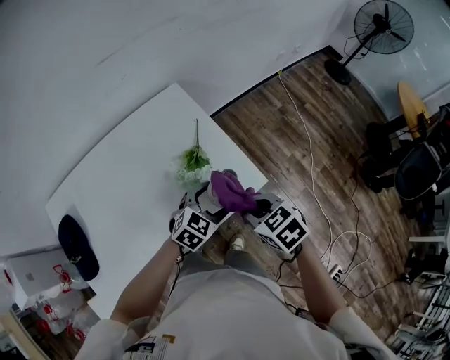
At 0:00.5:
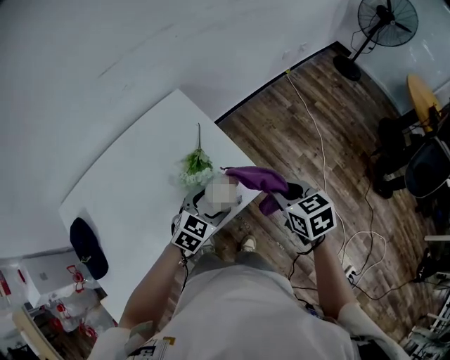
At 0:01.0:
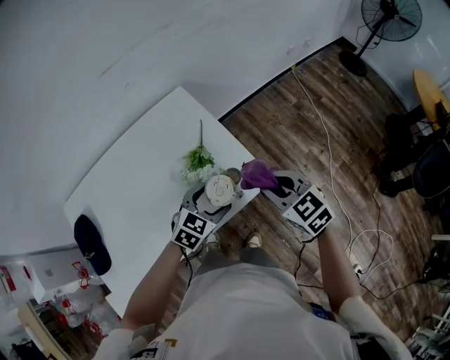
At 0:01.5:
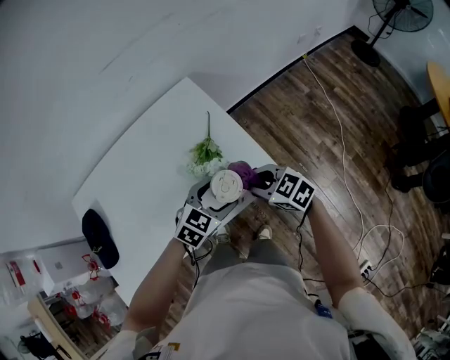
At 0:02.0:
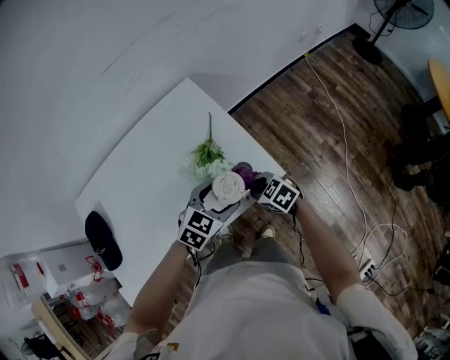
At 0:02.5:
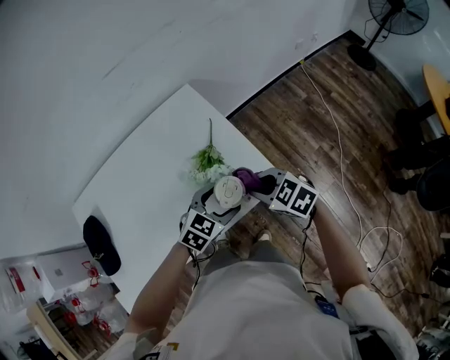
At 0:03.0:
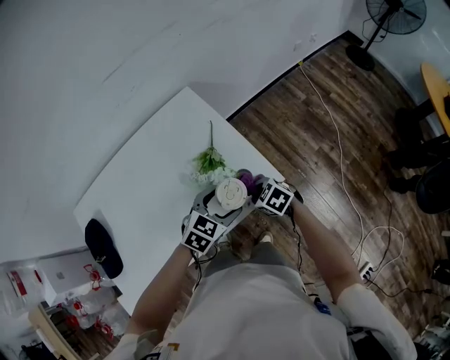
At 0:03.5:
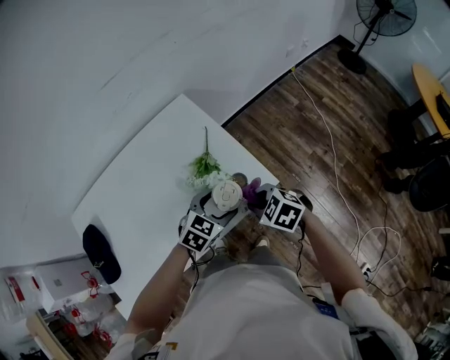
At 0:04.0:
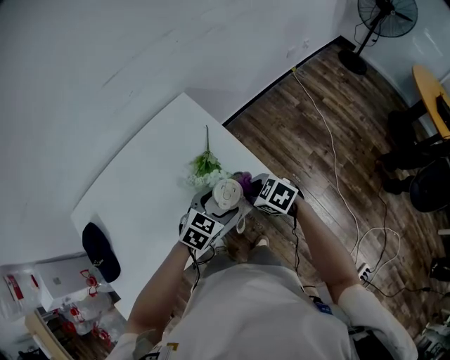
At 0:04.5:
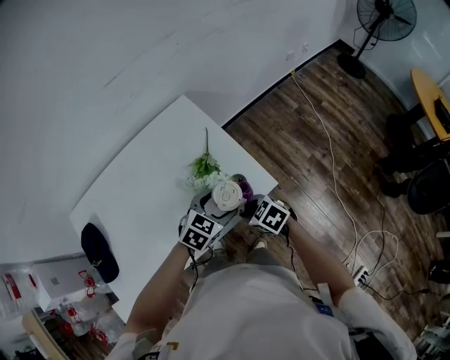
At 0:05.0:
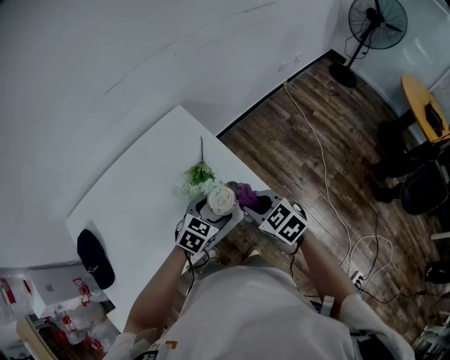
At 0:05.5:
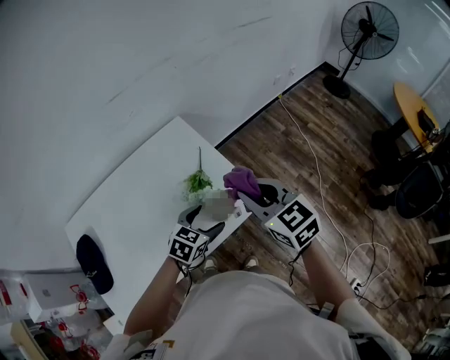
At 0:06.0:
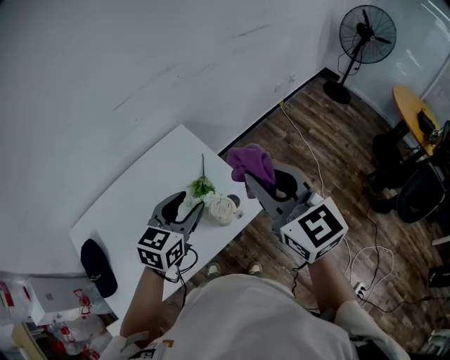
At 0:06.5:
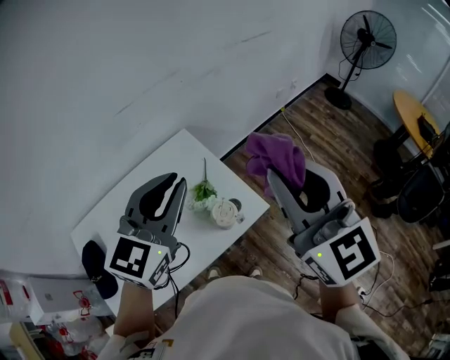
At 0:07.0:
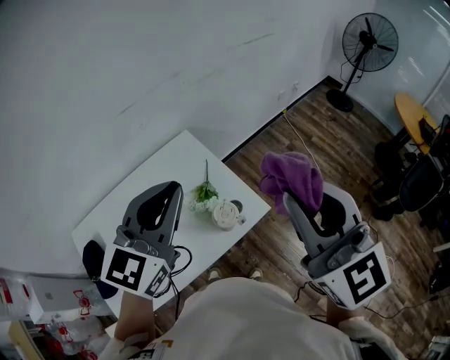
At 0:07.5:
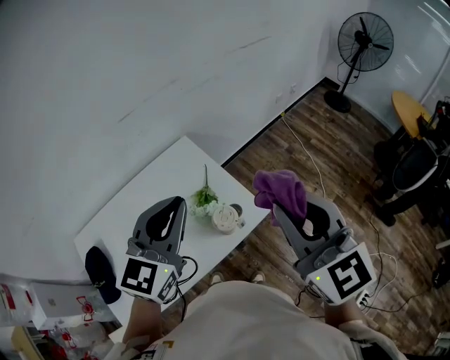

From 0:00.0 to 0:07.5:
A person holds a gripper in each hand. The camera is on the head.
From 0:00.0 to 0:02.0: The right gripper goes roughly 15 cm downward.
From 0:02.0 to 0:04.0: The right gripper swings up and down, approximately 10 cm each way, with 2 reversals.
From 0:04.0 to 0:05.5: The right gripper moves upward, approximately 20 cm, and rotates roughly 40 degrees.
From 0:05.5 to 0:07.5: The left gripper shifts some 30 cm upward, tips its fingers upward by approximately 30 degrees, and closes; the right gripper goes some 20 cm upward, and rotates roughly 20 degrees.

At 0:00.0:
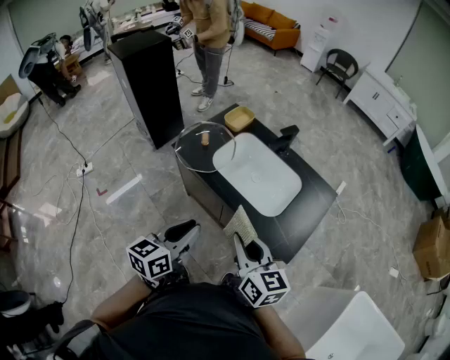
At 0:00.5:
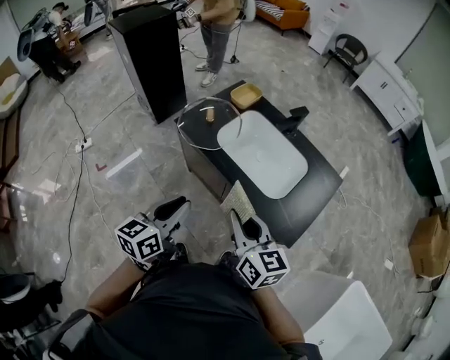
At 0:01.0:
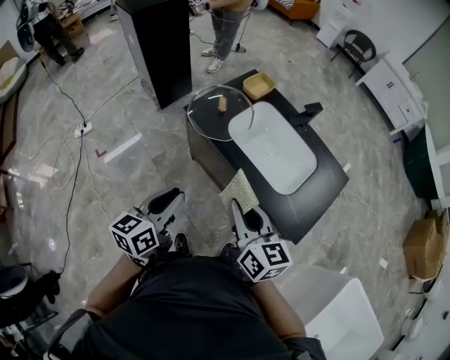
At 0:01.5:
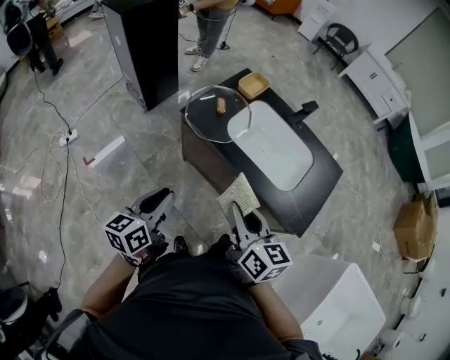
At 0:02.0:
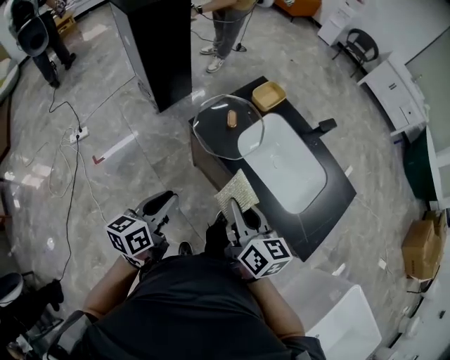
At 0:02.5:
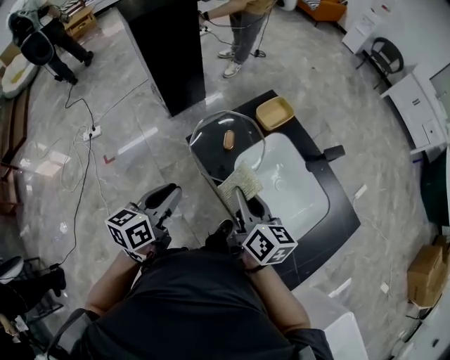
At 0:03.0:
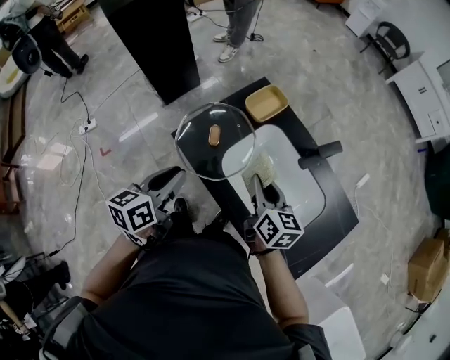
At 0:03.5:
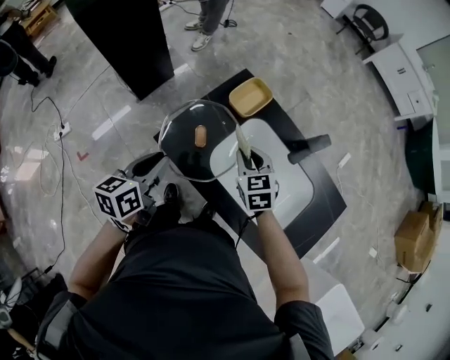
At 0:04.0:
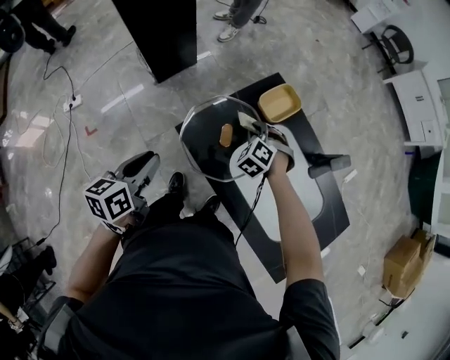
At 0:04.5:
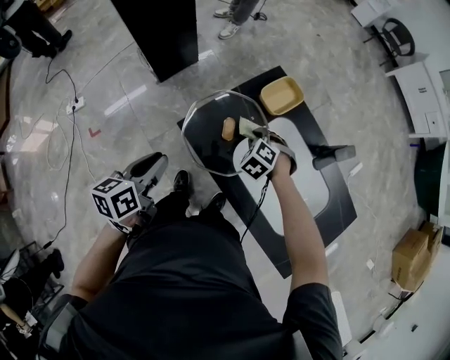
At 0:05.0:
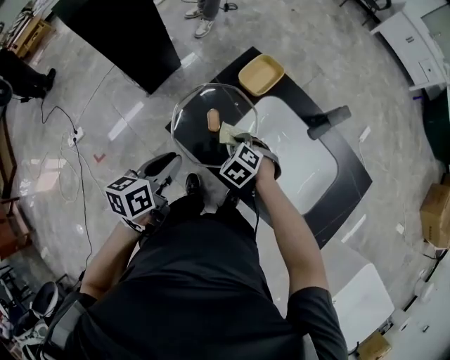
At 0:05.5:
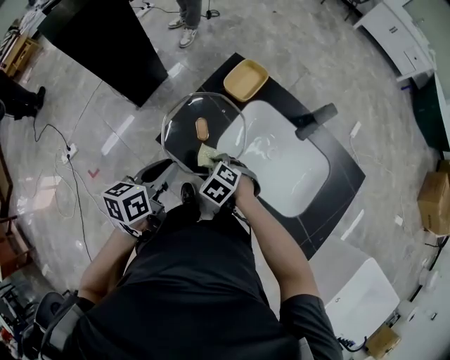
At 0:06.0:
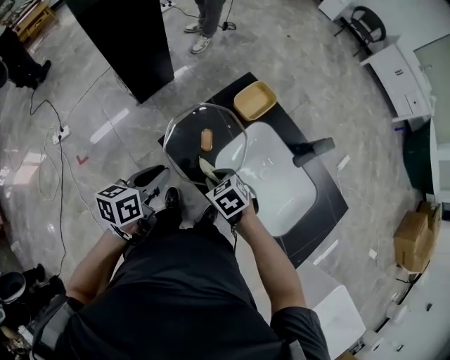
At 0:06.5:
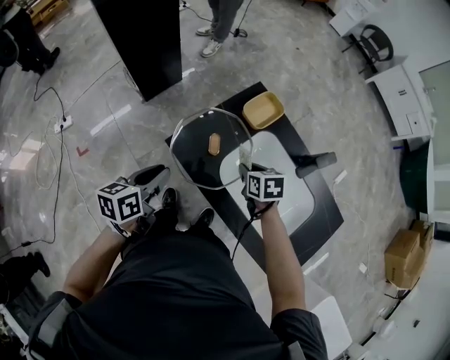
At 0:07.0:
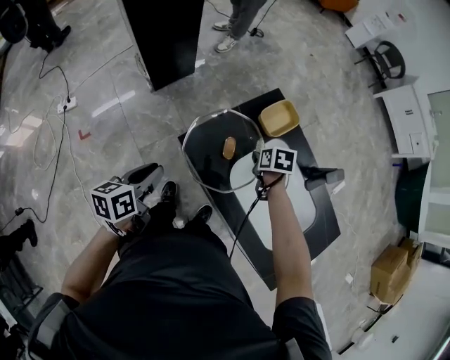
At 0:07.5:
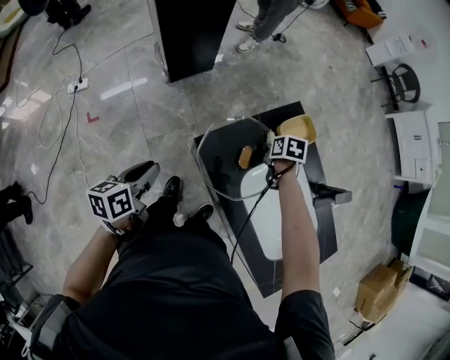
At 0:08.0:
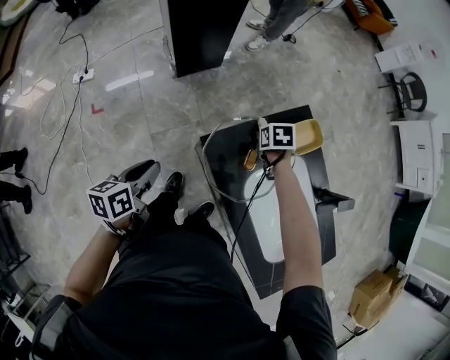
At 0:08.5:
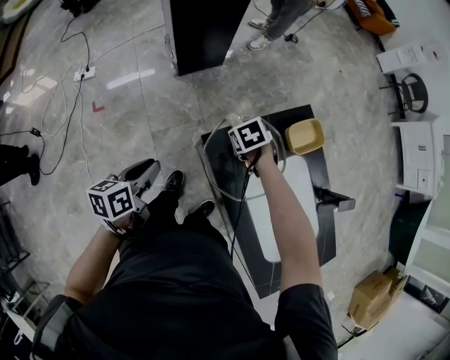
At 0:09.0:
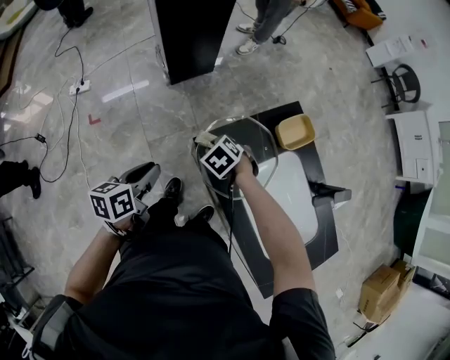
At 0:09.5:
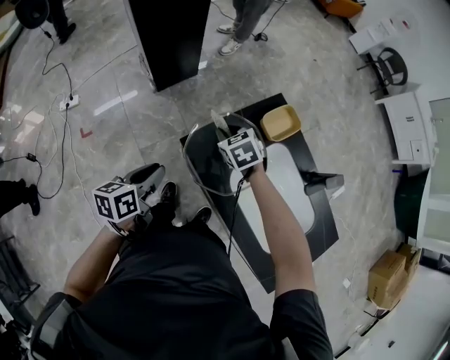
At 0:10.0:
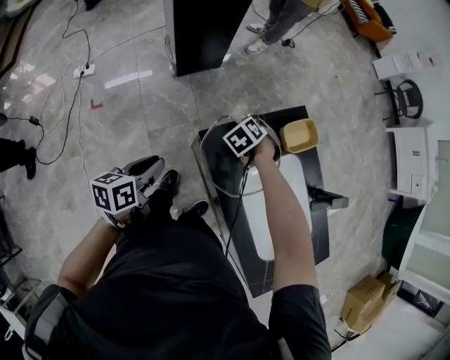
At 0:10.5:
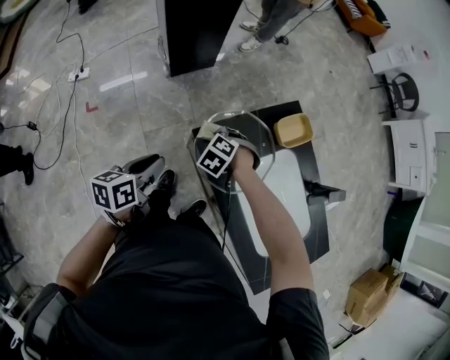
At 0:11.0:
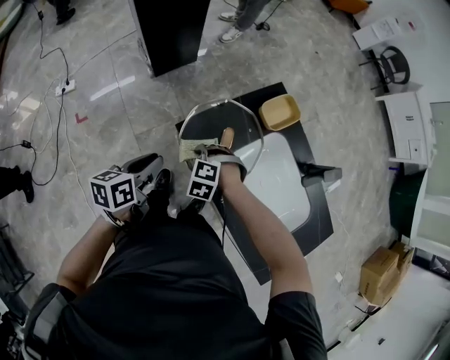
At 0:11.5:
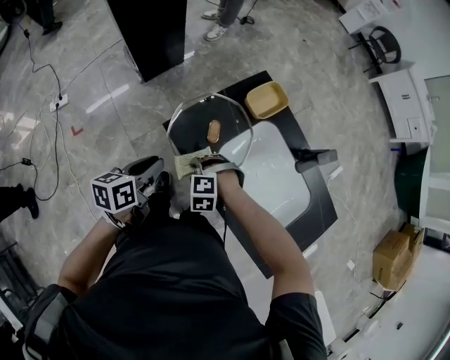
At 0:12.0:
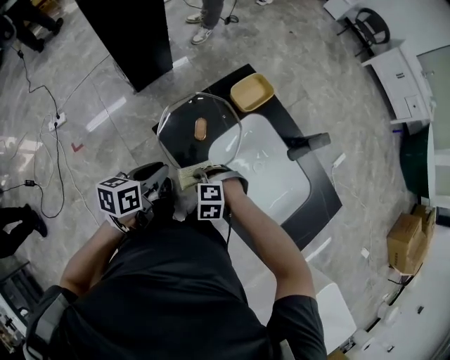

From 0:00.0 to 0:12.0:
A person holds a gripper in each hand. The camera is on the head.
From 0:00.0 to 0:02.0: The grippers both shift to the left and forward by approximately 20 cm.
From 0:02.0 to 0:04.0: The right gripper travels forward and downward by about 40 cm, and rotates around the line of its fingers by about 80 degrees, counterclockwise from behind; the left gripper moves forward, about 25 cm.
From 0:04.0 to 0:06.0: The left gripper moves to the right, roughly 5 cm; the right gripper shifts roughly 15 cm backward, and rotates some 40 degrees.
From 0:06.0 to 0:08.0: The right gripper changes place by about 25 cm, and turns by some 20 degrees. Meanwhile the left gripper moves approximately 15 cm, and changes its angle by approximately 20 degrees.
From 0:08.0 to 0:10.0: The right gripper twists roughly 50 degrees counterclockwise, seen from behind.
From 0:10.0 to 0:12.0: The left gripper ends up some 15 cm from where it was, and changes its angle by approximately 20 degrees; the right gripper shifts by approximately 25 cm, and rotates some 30 degrees.

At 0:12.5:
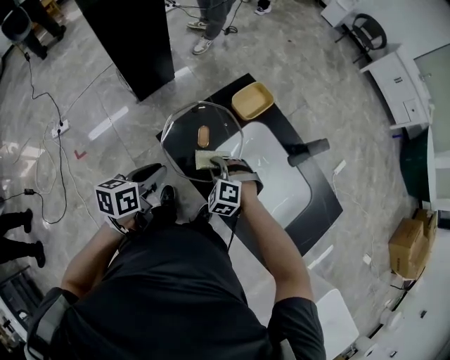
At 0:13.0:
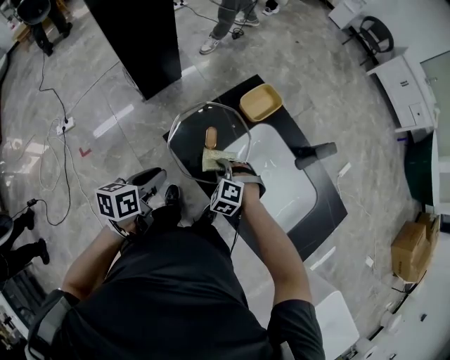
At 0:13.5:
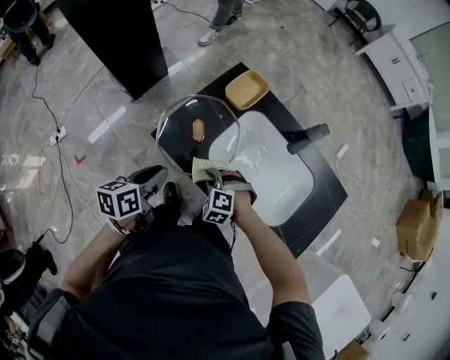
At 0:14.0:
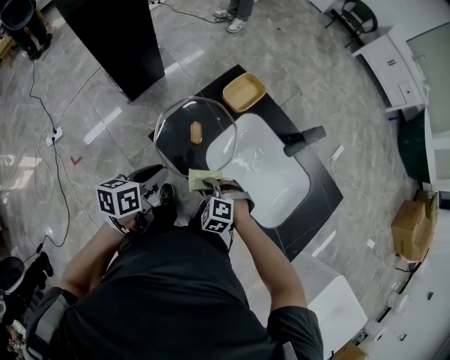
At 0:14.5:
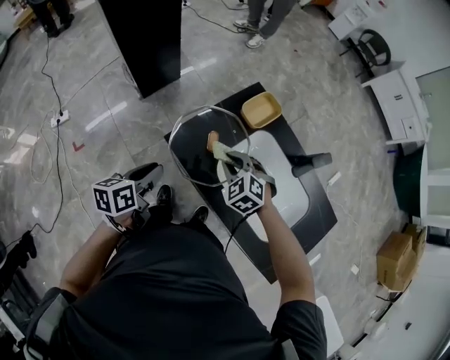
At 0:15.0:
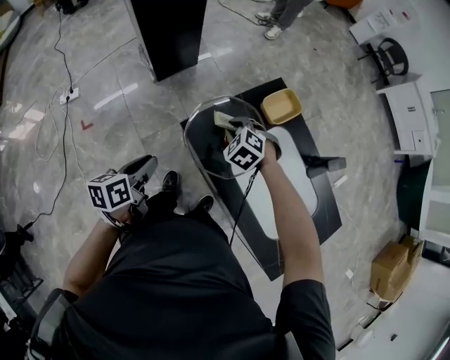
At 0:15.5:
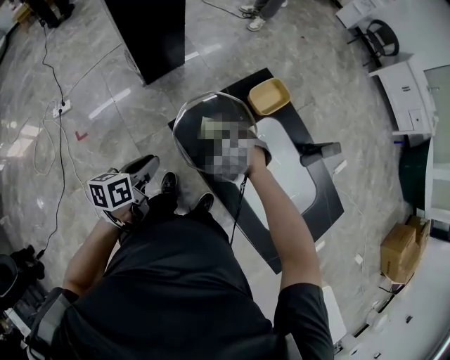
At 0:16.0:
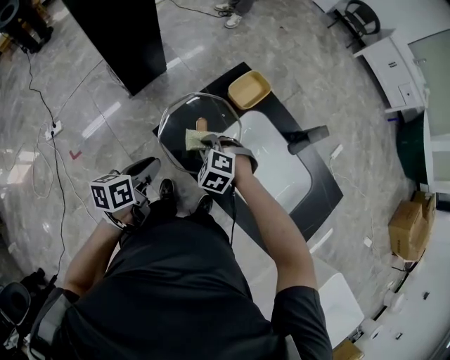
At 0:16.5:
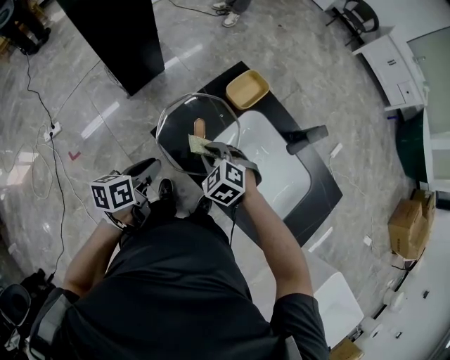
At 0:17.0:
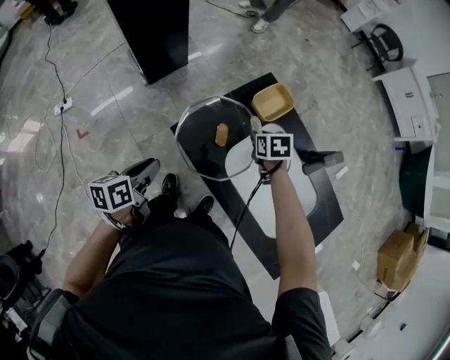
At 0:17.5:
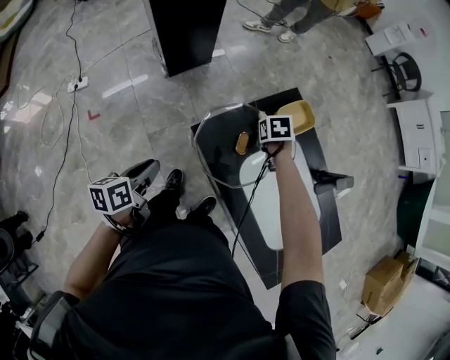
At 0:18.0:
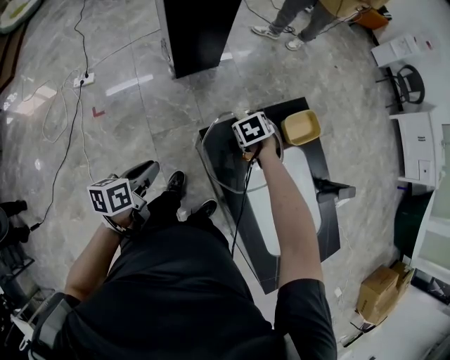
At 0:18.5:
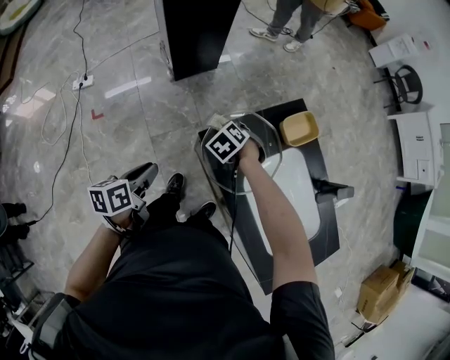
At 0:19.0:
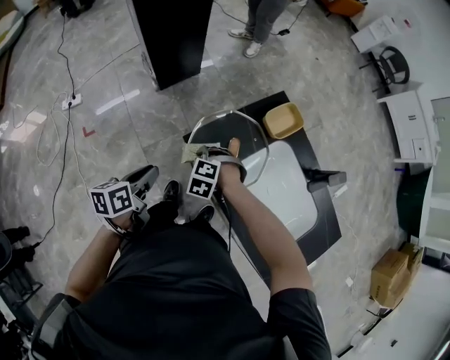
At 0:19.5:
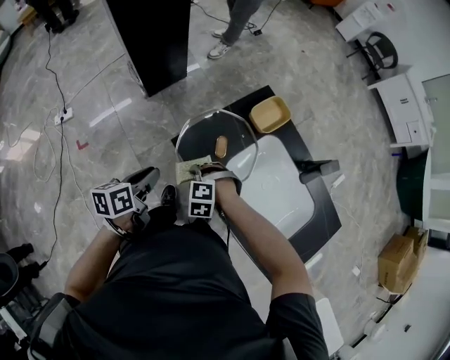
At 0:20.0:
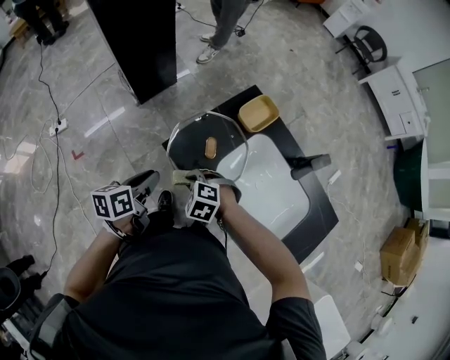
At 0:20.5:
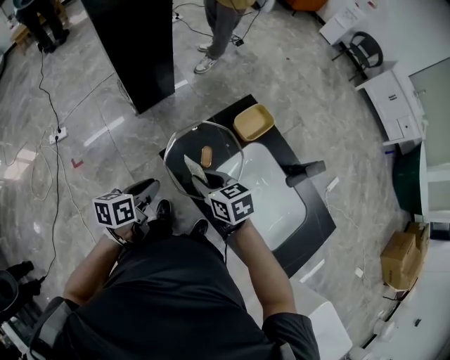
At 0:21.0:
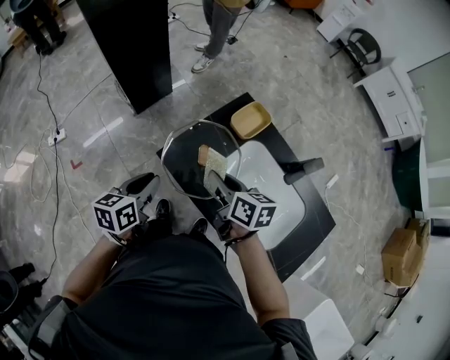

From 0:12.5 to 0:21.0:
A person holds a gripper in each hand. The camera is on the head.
From 0:12.5 to 0:14.5: The right gripper goes about 5 cm upward, goes backward and returns, about 10 cm each way, and turns by about 20 degrees.
From 0:14.5 to 0:16.5: The right gripper travels forward and back again, approximately 5 cm each way, while the left gripper goes to the left and returns, approximately 5 cm each way.
From 0:16.5 to 0:19.0: The right gripper shifts by some 15 cm, and rotates some 30 degrees; the left gripper shifts by some 10 cm.
From 0:19.0 to 0:21.0: The right gripper heads upward, covering about 20 cm, and rolls clockwise, seen from behind, by some 90 degrees; the left gripper ends up roughly 10 cm from where it was, and swivels some 20 degrees.
